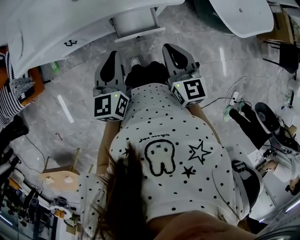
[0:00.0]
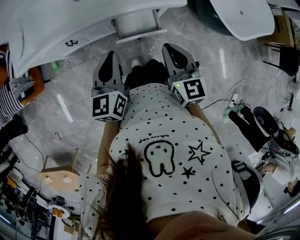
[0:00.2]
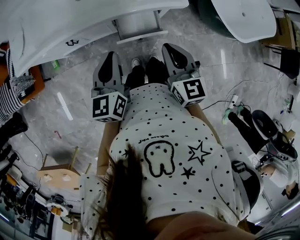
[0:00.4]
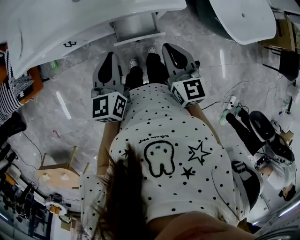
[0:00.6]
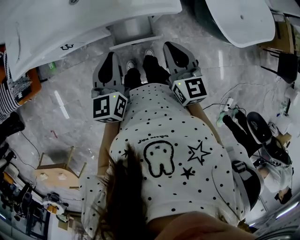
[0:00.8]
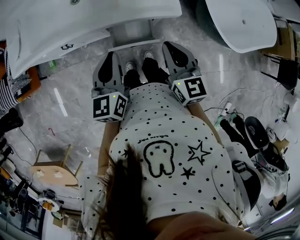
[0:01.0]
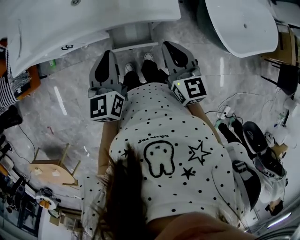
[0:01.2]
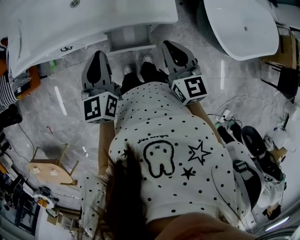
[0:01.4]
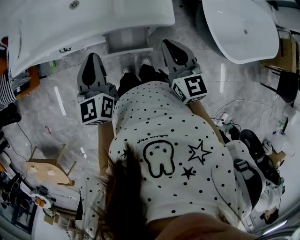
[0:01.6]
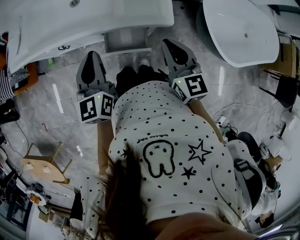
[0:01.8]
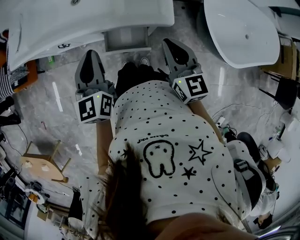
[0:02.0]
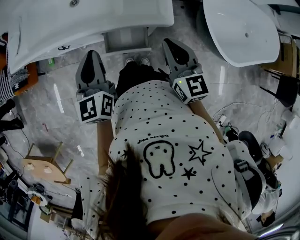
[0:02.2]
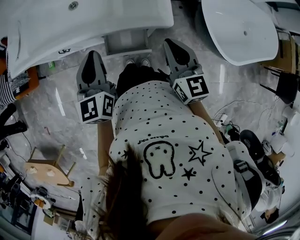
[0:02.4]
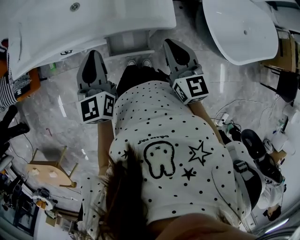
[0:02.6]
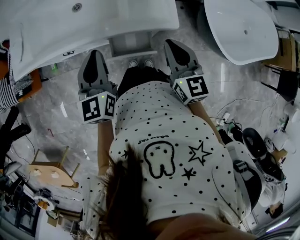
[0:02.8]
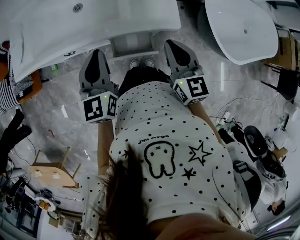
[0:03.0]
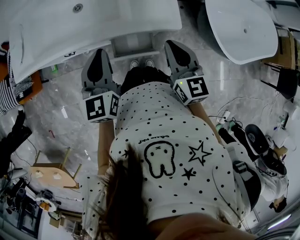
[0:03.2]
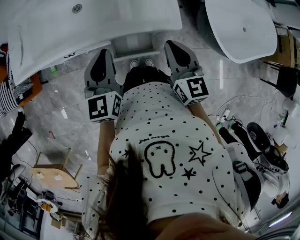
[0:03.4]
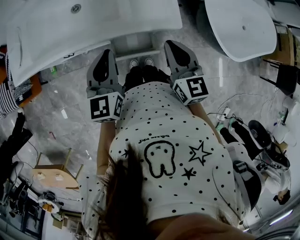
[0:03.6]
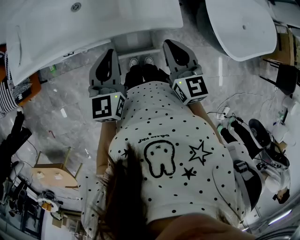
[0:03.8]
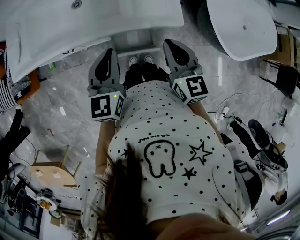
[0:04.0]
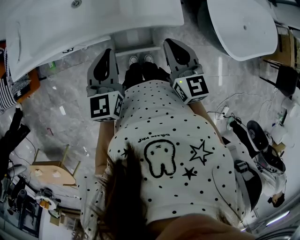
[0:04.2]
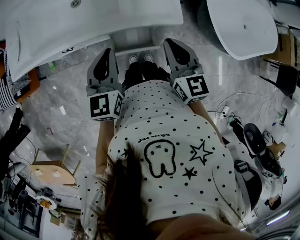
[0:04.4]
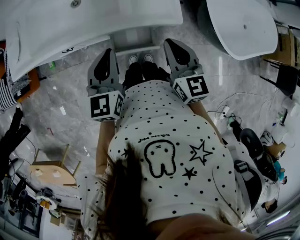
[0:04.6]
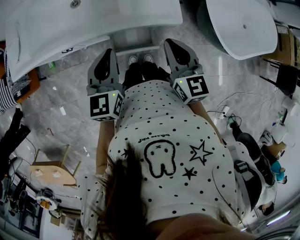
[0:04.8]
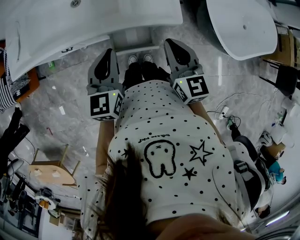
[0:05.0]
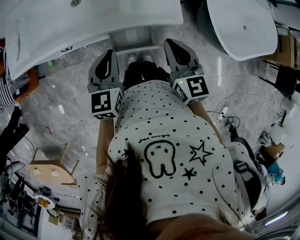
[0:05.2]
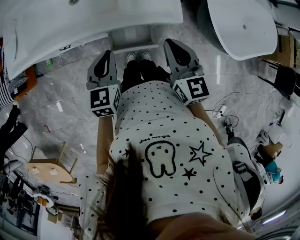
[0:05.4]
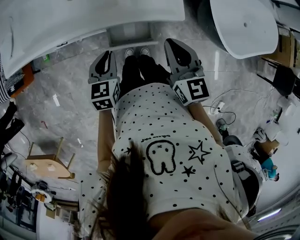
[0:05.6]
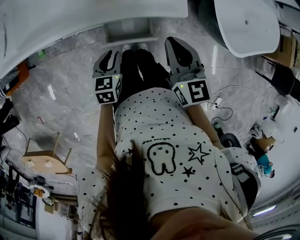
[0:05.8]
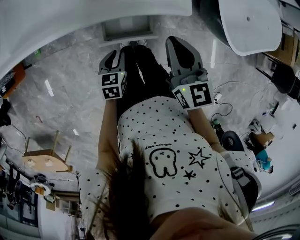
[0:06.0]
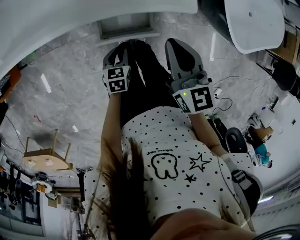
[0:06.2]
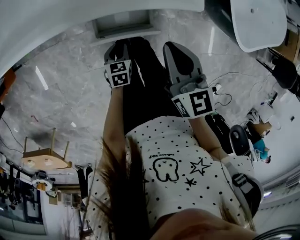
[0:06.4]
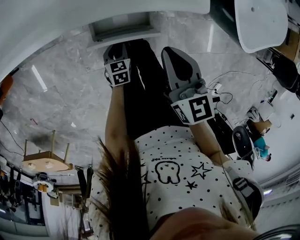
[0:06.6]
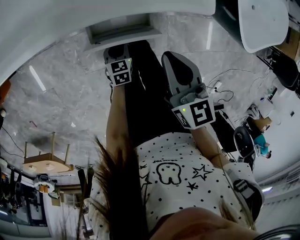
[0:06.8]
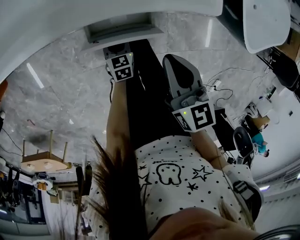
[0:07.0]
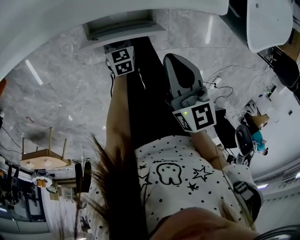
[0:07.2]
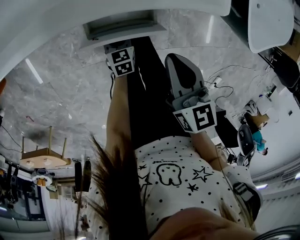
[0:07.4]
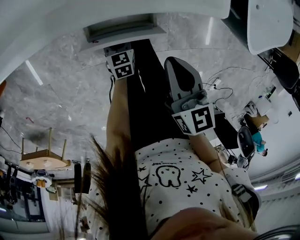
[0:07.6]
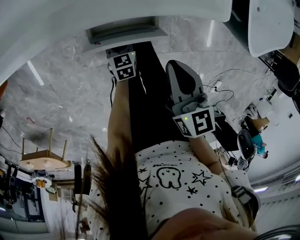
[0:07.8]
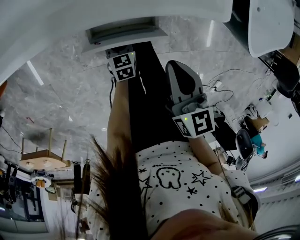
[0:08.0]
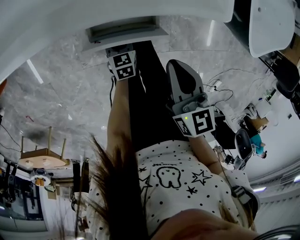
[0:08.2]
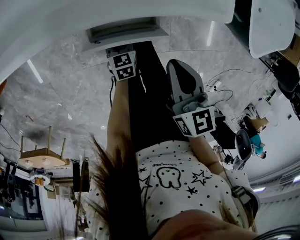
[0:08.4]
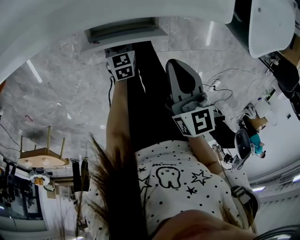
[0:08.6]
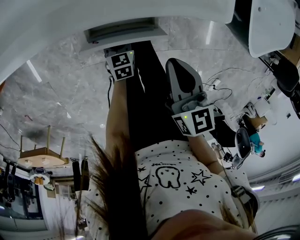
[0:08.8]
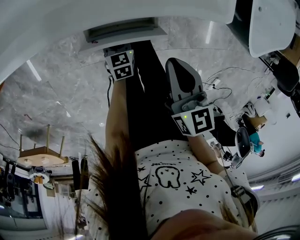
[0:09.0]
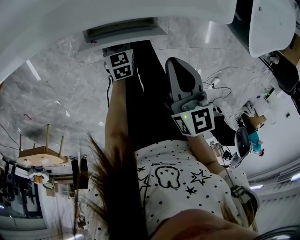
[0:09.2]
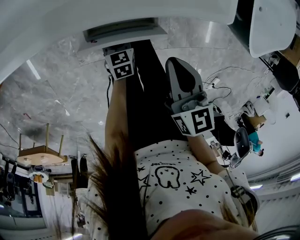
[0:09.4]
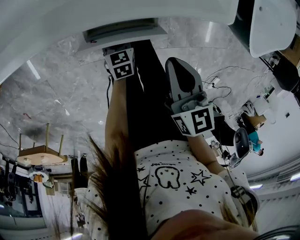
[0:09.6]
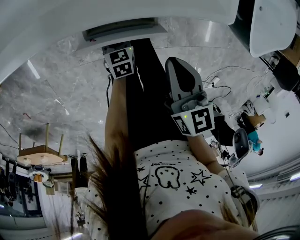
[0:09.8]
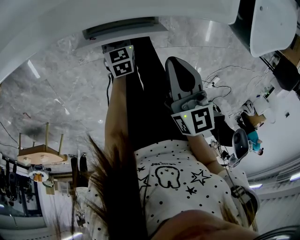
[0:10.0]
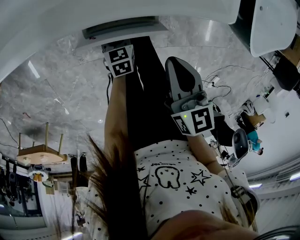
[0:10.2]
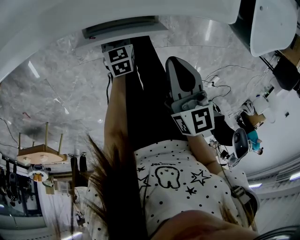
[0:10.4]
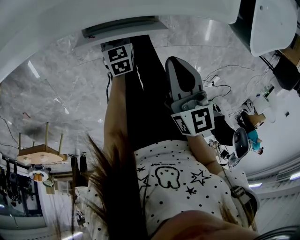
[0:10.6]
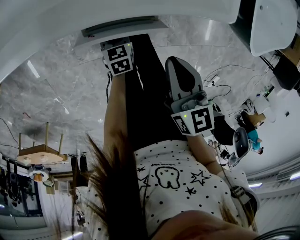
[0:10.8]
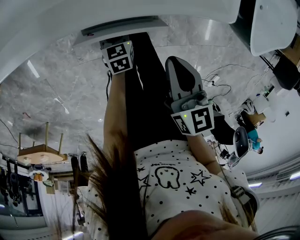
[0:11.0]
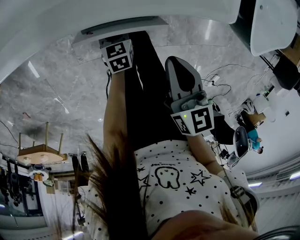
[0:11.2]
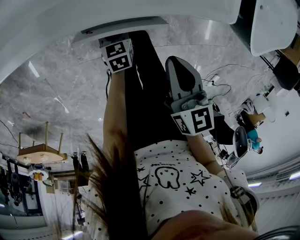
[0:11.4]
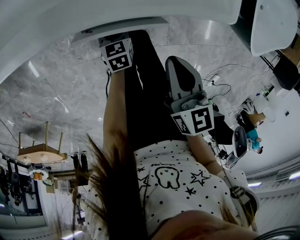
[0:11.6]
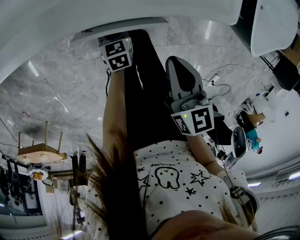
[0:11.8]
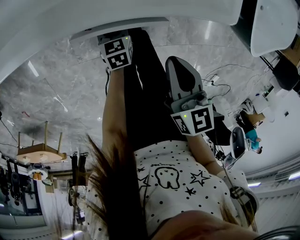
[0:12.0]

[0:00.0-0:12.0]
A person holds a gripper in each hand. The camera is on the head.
0:00.0 to 0:01.6: The left gripper goes approximately 10 cm forward, while the right gripper heads forward and to the right, covering some 15 cm.
0:01.6 to 0:03.0: The grippers stay close to where they were, moving slightly.
0:03.0 to 0:04.4: The grippers make only small movements.
0:04.4 to 0:06.0: The left gripper moves downward, some 25 cm, and angles its fingers downward, by about 30 degrees.
0:06.0 to 0:07.6: The grippers both shift downward by approximately 20 cm.
0:07.6 to 0:09.0: Both grippers stay put.
0:09.0 to 0:12.0: The grippers stay close to where they were, moving slightly.

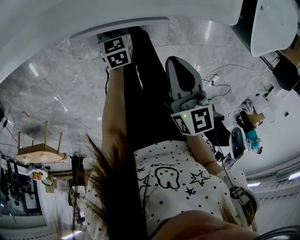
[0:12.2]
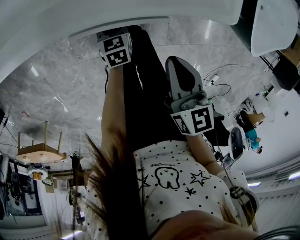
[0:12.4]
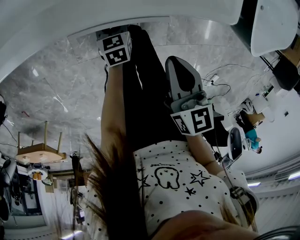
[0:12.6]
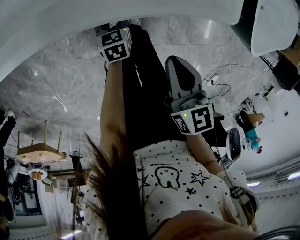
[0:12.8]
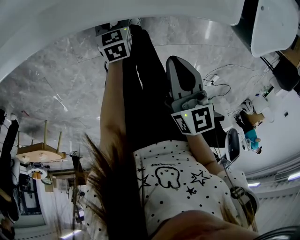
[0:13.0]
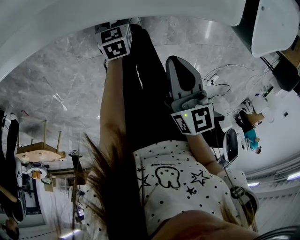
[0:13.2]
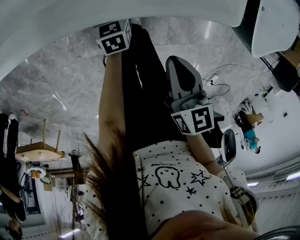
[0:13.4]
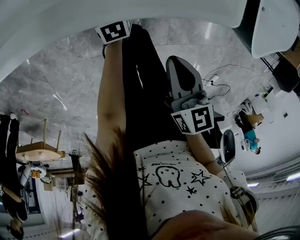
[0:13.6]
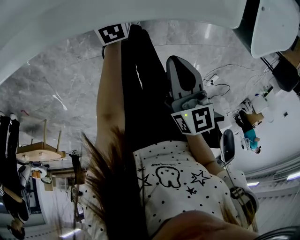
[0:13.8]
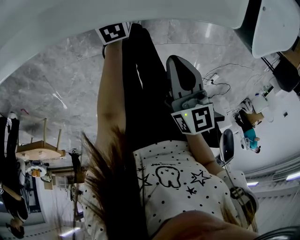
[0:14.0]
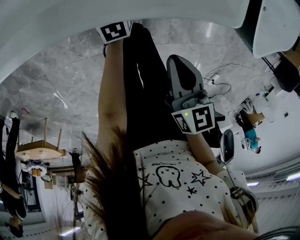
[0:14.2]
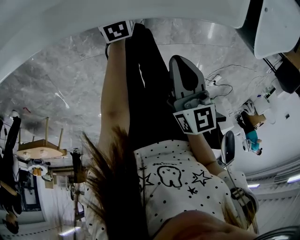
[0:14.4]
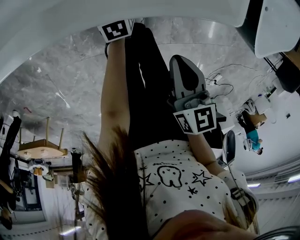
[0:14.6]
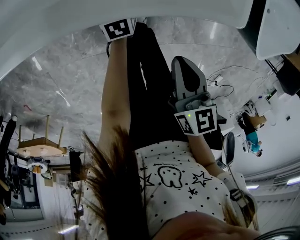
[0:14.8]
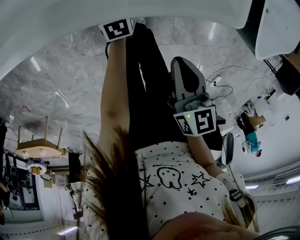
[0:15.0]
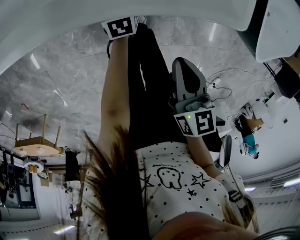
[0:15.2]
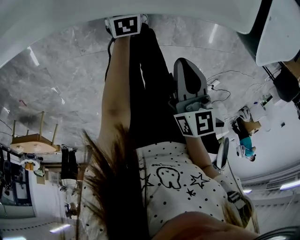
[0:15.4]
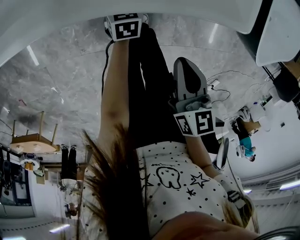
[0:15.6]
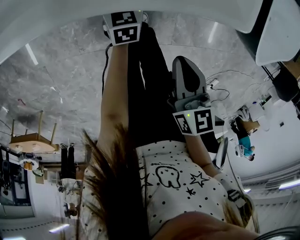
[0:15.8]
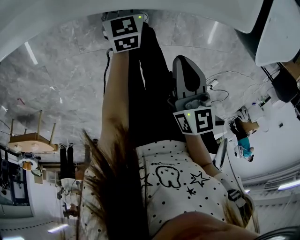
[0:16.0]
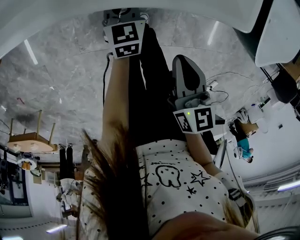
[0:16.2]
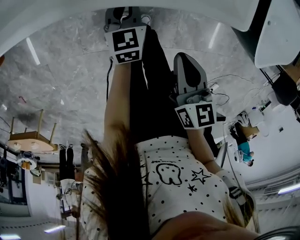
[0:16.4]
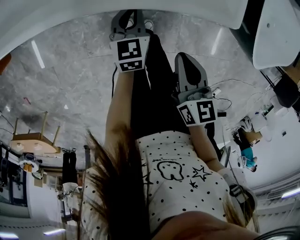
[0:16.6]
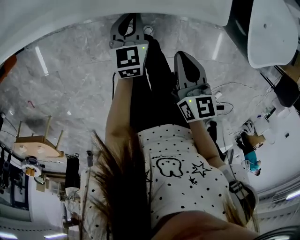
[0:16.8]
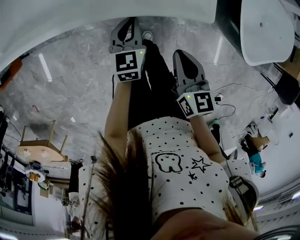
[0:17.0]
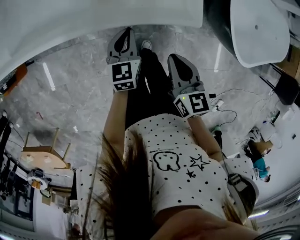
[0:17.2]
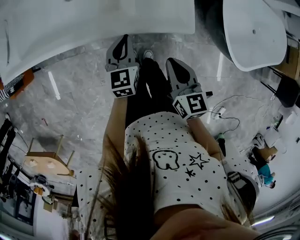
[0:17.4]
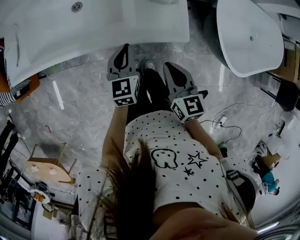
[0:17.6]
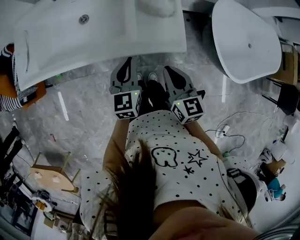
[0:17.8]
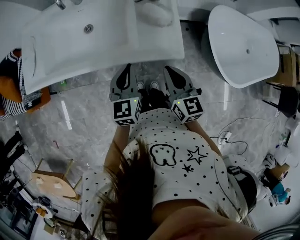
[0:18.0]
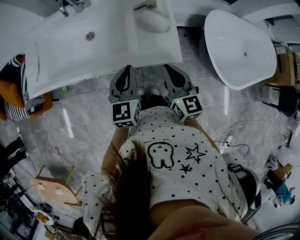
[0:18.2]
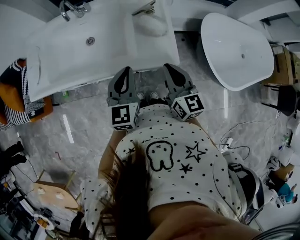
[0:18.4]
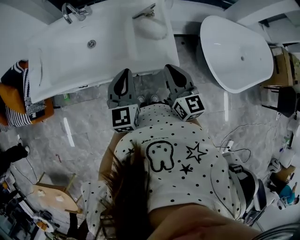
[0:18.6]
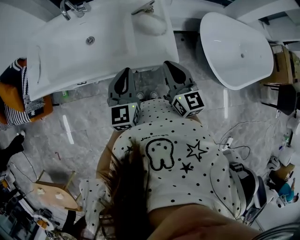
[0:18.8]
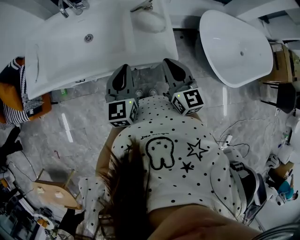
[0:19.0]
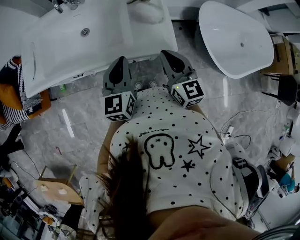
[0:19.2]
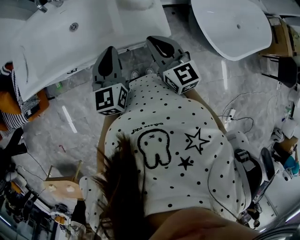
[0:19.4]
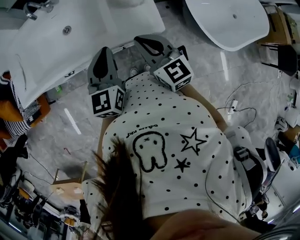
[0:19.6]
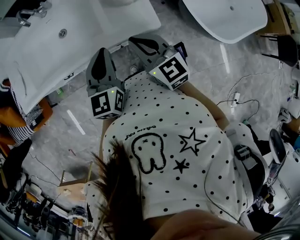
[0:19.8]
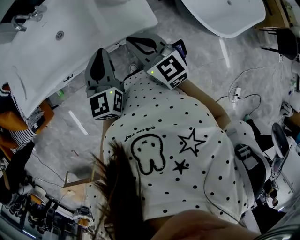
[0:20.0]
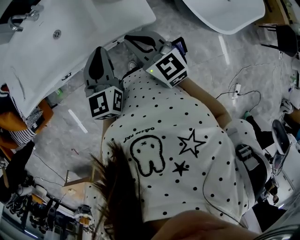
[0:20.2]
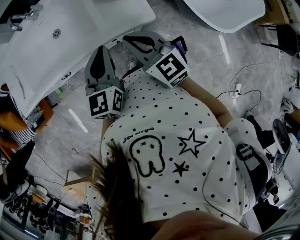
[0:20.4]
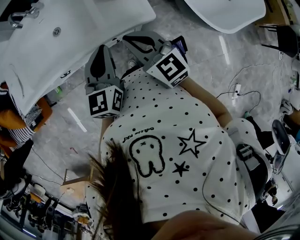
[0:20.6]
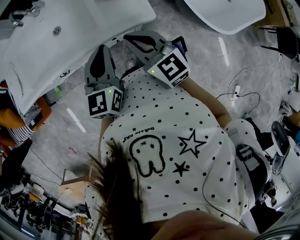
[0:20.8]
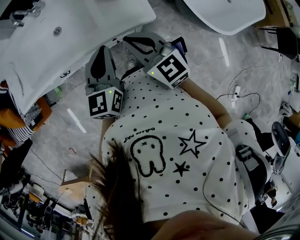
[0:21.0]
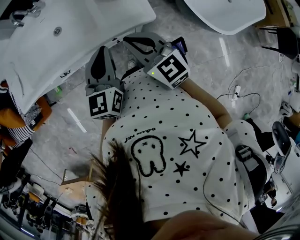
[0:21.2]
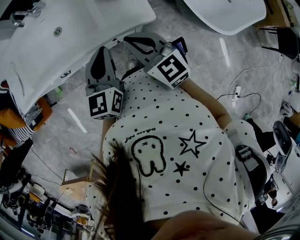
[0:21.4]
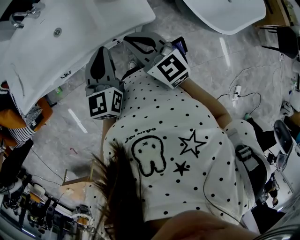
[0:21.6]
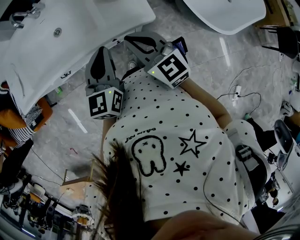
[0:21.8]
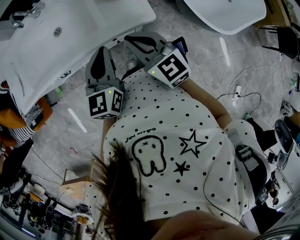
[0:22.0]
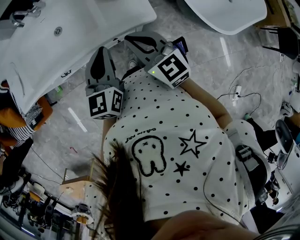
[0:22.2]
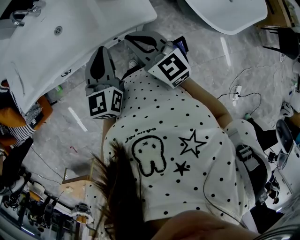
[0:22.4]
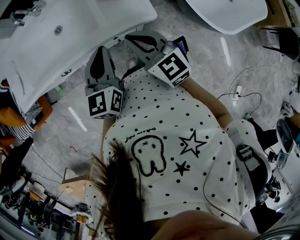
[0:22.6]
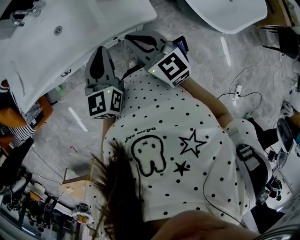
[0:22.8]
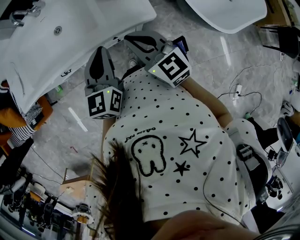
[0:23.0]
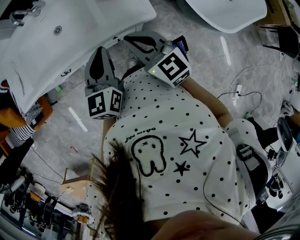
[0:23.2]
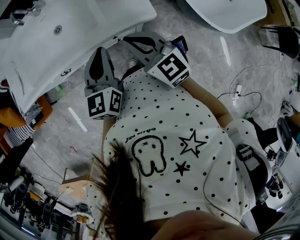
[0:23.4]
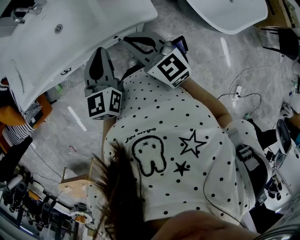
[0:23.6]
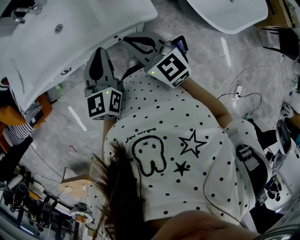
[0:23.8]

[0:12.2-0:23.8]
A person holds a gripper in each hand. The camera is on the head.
0:12.2 to 0:13.6: The left gripper is displaced forward by about 10 cm.
0:13.6 to 0:15.0: The two grippers keep their place.
0:15.0 to 0:16.6: The left gripper shifts some 15 cm upward, and closes.
0:16.6 to 0:18.0: The right gripper shifts roughly 20 cm upward, and turns by approximately 20 degrees; the left gripper moves upward, roughly 30 cm.
0:18.0 to 0:19.4: The left gripper moves upward, some 5 cm.
0:19.4 to 0:21.0: The grippers stay close to where they were, moving slightly.
0:21.0 to 0:22.4: The two grippers keep their place.
0:22.4 to 0:23.8: Both grippers stay about where they are.
